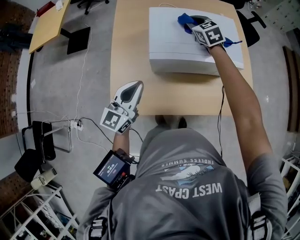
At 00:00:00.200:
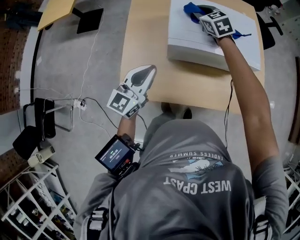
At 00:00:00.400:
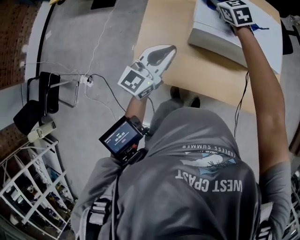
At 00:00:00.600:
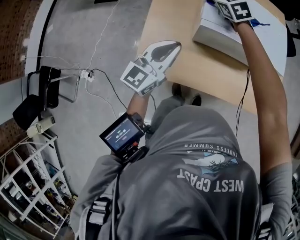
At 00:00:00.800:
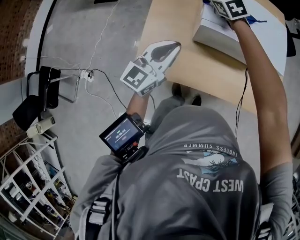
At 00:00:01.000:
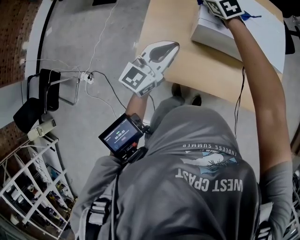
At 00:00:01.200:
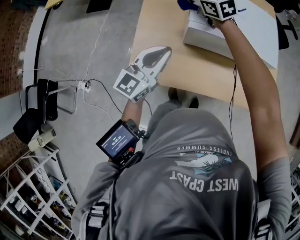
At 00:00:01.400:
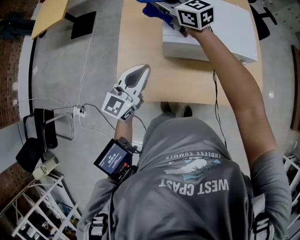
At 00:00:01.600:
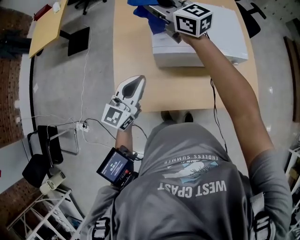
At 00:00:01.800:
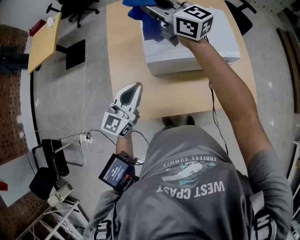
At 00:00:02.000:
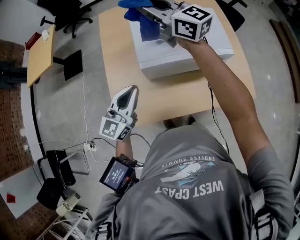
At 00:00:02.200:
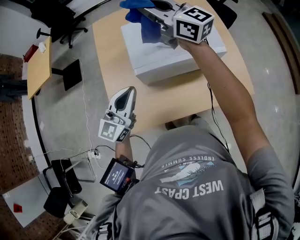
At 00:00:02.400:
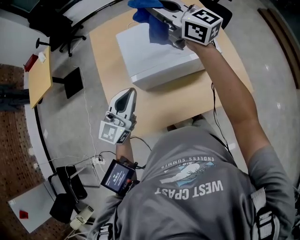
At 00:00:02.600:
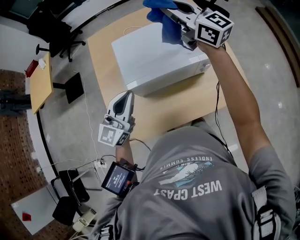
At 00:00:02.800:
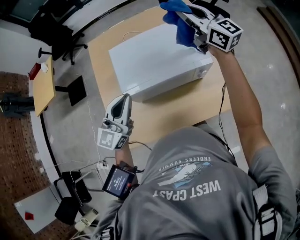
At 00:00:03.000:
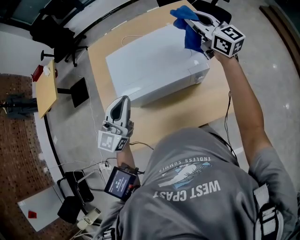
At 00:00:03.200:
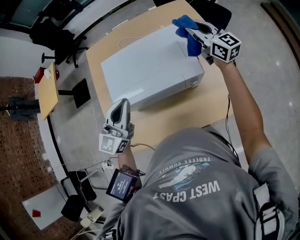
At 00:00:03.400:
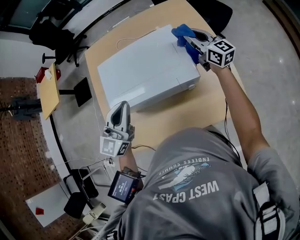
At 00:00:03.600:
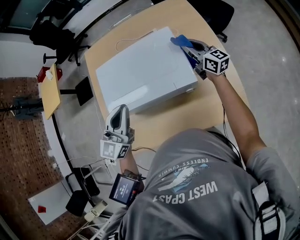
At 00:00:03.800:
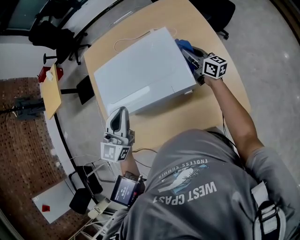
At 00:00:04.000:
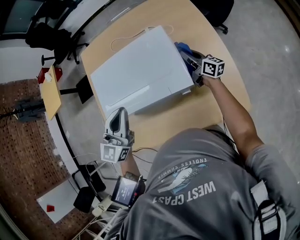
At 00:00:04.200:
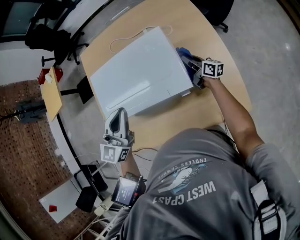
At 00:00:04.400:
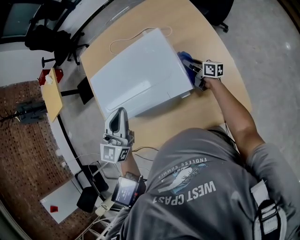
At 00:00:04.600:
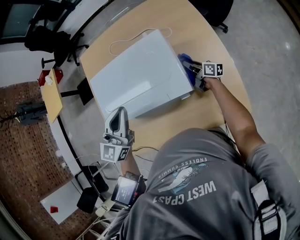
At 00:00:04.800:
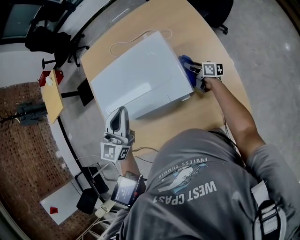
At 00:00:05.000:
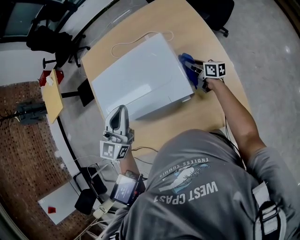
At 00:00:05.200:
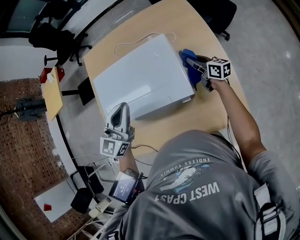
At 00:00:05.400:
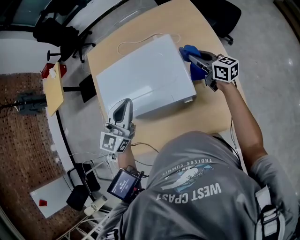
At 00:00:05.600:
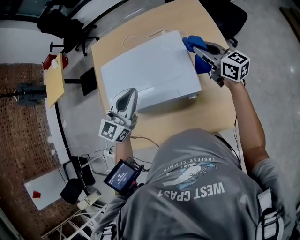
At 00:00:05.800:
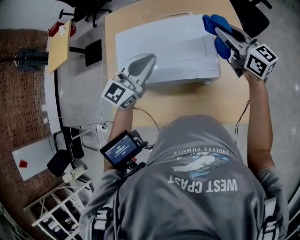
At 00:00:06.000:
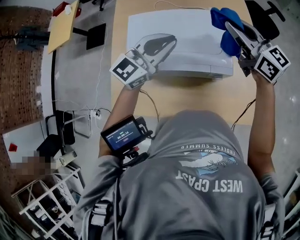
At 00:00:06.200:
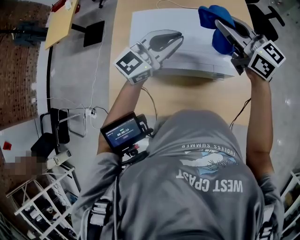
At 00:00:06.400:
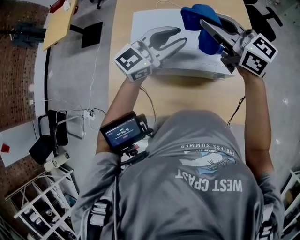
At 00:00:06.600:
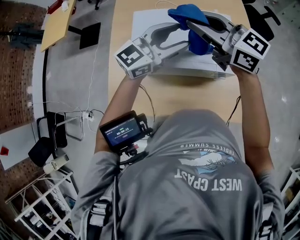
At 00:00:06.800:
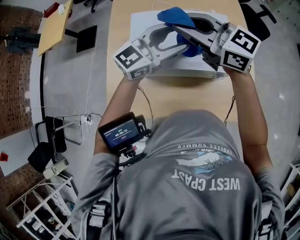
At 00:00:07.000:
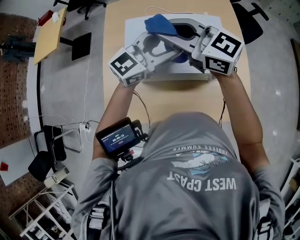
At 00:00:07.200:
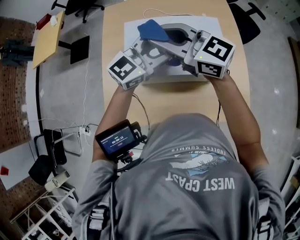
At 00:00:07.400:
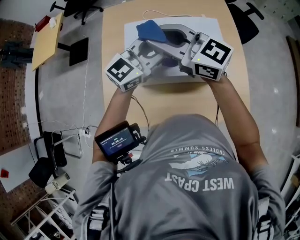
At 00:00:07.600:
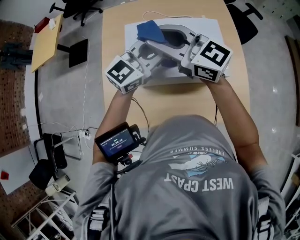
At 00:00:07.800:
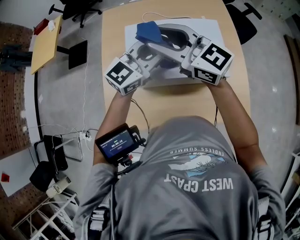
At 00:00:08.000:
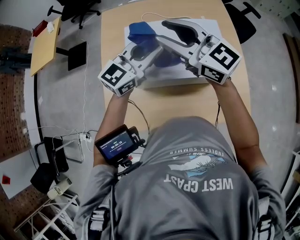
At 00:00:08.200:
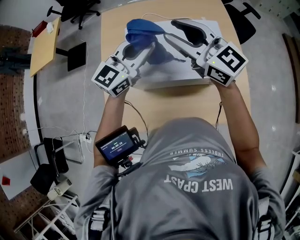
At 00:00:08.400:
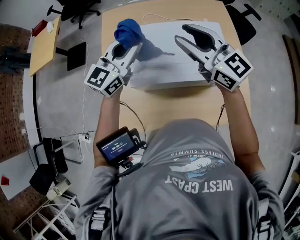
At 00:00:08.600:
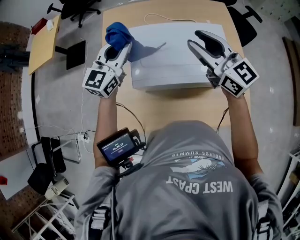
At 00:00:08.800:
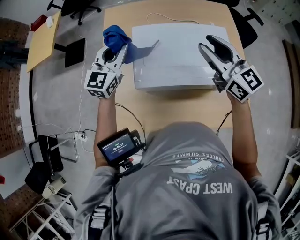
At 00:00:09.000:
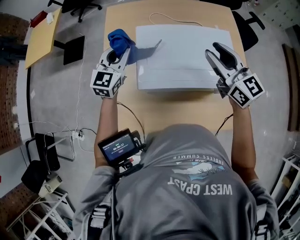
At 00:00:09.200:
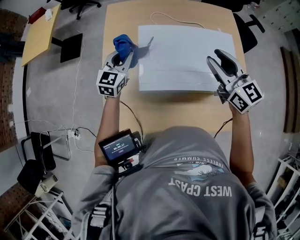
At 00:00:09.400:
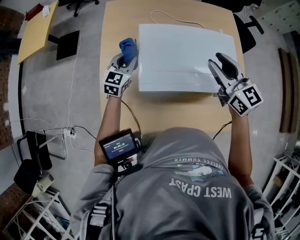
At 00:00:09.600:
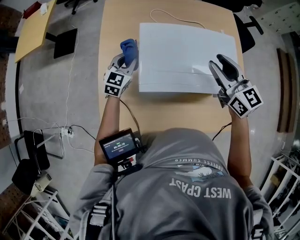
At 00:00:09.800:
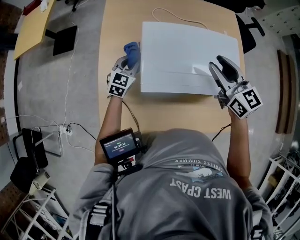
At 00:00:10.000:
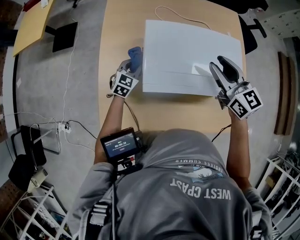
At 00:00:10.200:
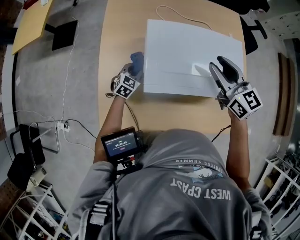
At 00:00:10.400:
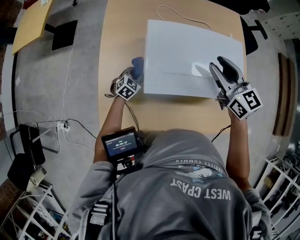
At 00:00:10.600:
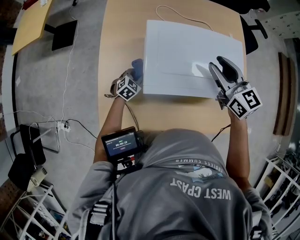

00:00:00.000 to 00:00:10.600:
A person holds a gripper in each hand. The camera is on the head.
00:00:00.000 to 00:00:01.600: The right gripper heads to the left and upward, covering approximately 25 cm, and points its fingers some 40 degrees further upward.
00:00:01.600 to 00:00:03.000: The right gripper shifts about 40 cm to the right, and changes its angle by about 30 degrees. The left gripper is displaced to the right, forward and upward by some 20 cm.
00:00:03.000 to 00:00:04.600: The left gripper travels to the right and forward by some 10 cm; the right gripper travels downward by about 40 cm, and rolls clockwise, seen from behind, by roughly 60 degrees.
00:00:04.600 to 00:00:06.000: The right gripper shifts roughly 35 cm upward, and rolls counterclockwise, seen from behind, by about 50 degrees.
00:00:06.000 to 00:00:07.600: The left gripper shifts by approximately 5 cm, and opens, then closes again; the right gripper moves some 30 cm.
00:00:07.600 to 00:00:09.000: The left gripper shifts some 20 cm to the left and downward, and rotates about 30 degrees, while the right gripper travels to the right and downward by roughly 15 cm, and swivels about 30 degrees.
00:00:09.000 to 00:00:10.600: The right gripper ends up approximately 5 cm from where it was. The left gripper shifts approximately 30 cm downward, and tilts its fingers about 40 degrees downward.

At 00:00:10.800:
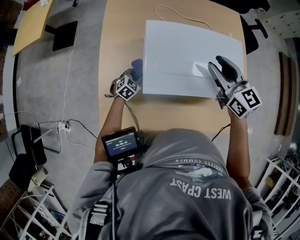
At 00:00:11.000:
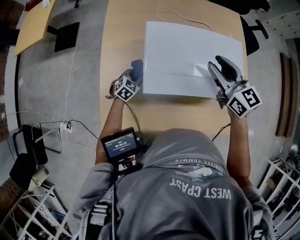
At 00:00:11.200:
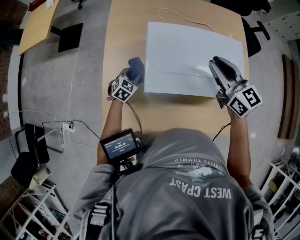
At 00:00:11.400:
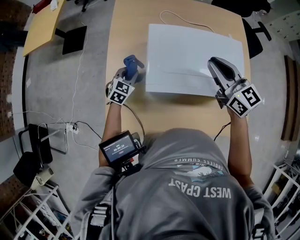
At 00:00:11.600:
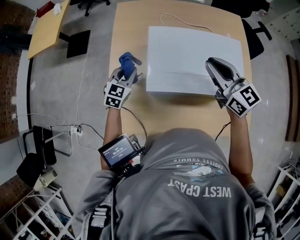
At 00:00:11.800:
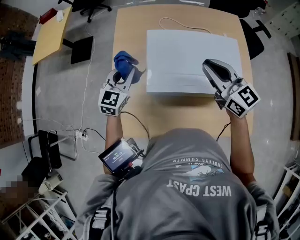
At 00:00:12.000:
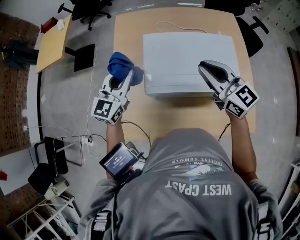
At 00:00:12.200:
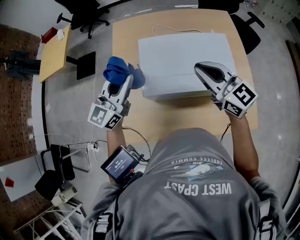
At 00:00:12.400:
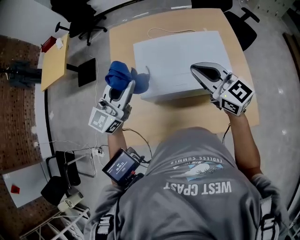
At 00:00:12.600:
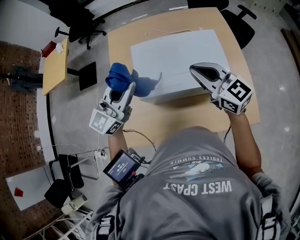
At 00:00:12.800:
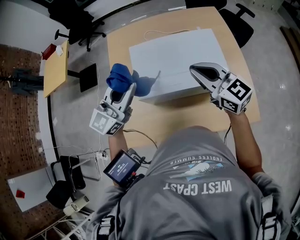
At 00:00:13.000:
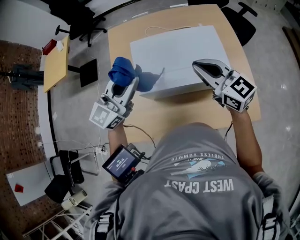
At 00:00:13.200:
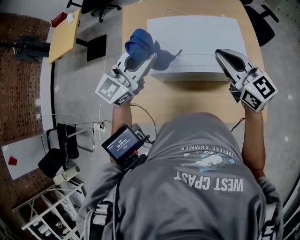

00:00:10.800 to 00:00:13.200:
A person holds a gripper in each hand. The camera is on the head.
00:00:10.800 to 00:00:12.000: The right gripper heads upward, covering about 5 cm, and closes its fingers; the left gripper moves upward, some 35 cm, and angles its fingers upward, by roughly 40 degrees.
00:00:12.000 to 00:00:13.200: The left gripper goes approximately 15 cm to the right and upward, and changes its angle by about 30 degrees; the right gripper goes roughly 10 cm to the right.

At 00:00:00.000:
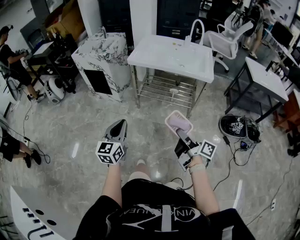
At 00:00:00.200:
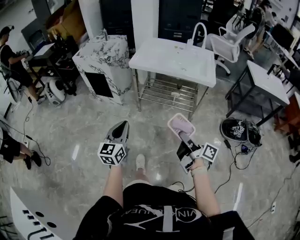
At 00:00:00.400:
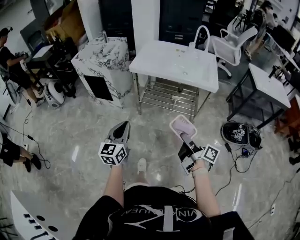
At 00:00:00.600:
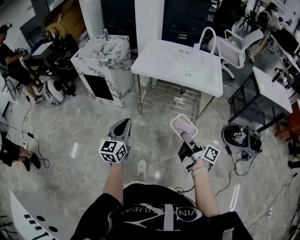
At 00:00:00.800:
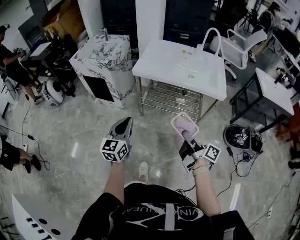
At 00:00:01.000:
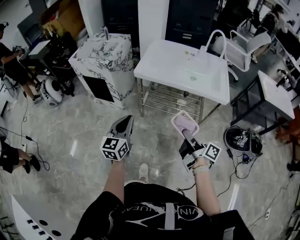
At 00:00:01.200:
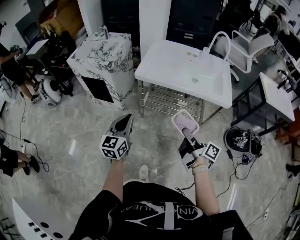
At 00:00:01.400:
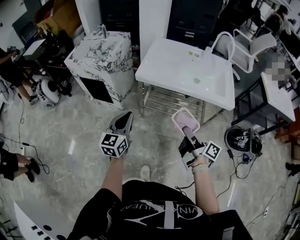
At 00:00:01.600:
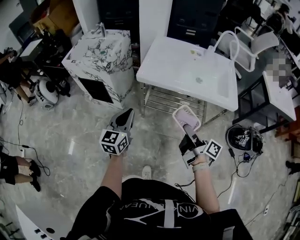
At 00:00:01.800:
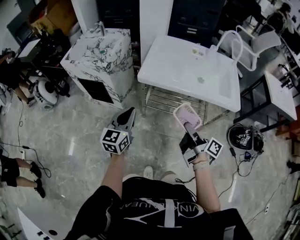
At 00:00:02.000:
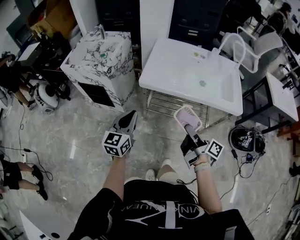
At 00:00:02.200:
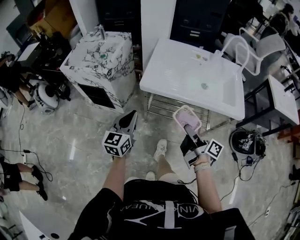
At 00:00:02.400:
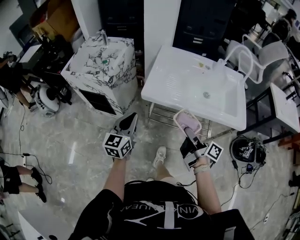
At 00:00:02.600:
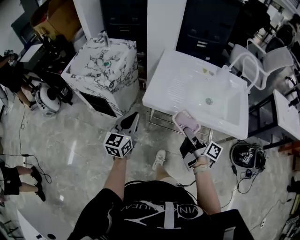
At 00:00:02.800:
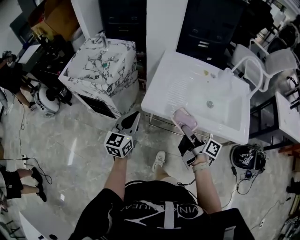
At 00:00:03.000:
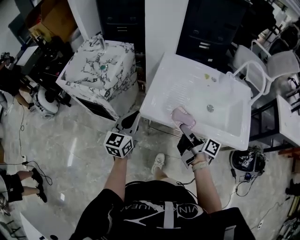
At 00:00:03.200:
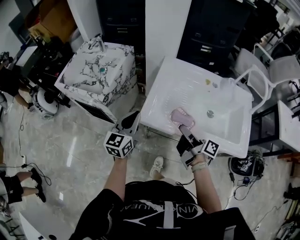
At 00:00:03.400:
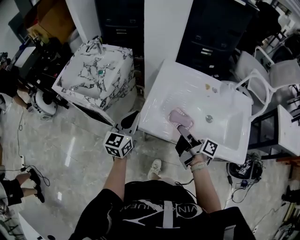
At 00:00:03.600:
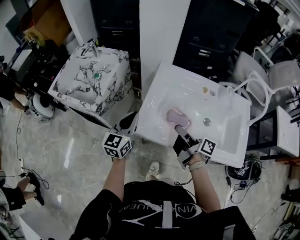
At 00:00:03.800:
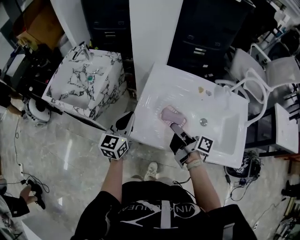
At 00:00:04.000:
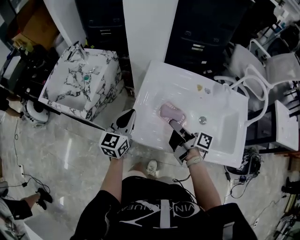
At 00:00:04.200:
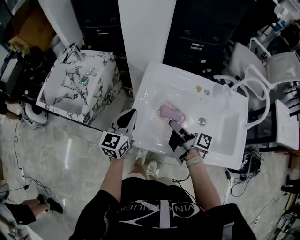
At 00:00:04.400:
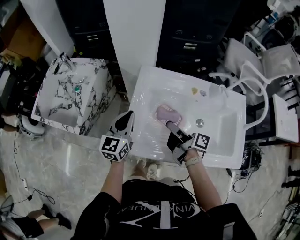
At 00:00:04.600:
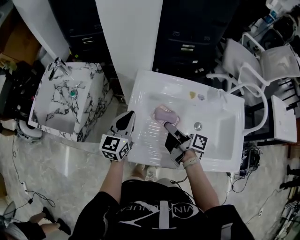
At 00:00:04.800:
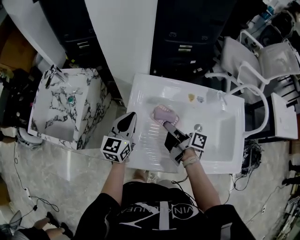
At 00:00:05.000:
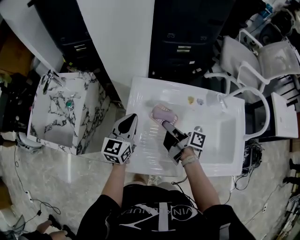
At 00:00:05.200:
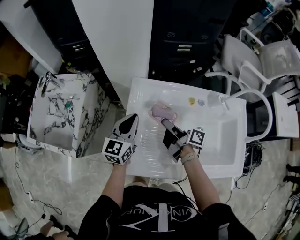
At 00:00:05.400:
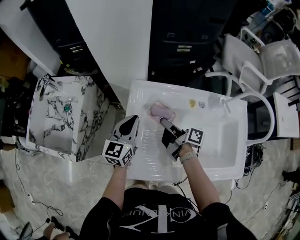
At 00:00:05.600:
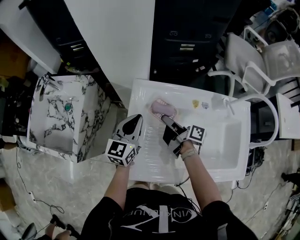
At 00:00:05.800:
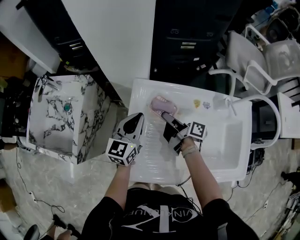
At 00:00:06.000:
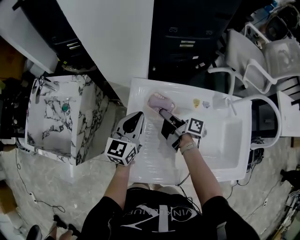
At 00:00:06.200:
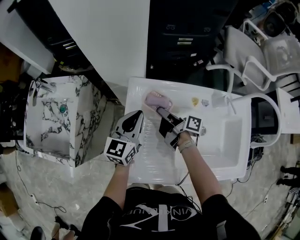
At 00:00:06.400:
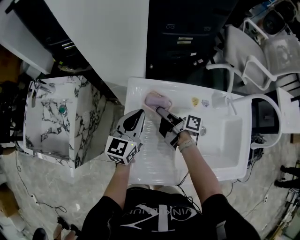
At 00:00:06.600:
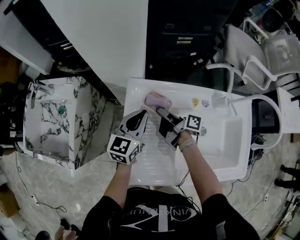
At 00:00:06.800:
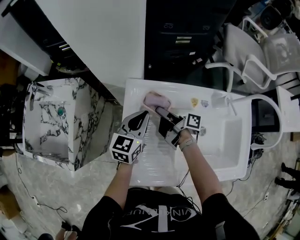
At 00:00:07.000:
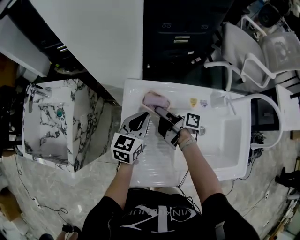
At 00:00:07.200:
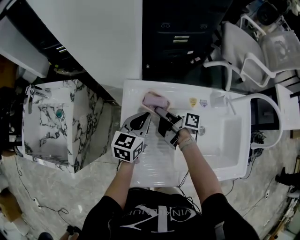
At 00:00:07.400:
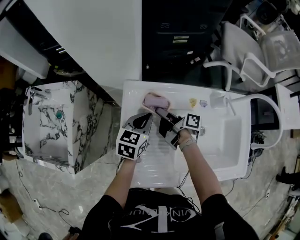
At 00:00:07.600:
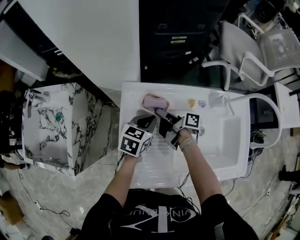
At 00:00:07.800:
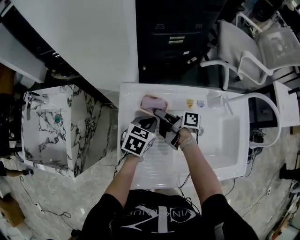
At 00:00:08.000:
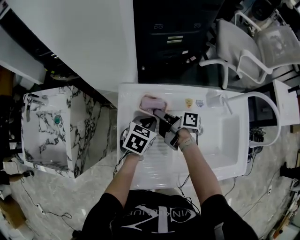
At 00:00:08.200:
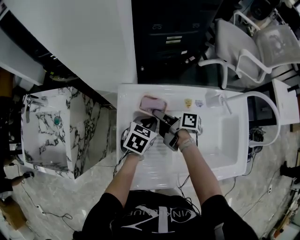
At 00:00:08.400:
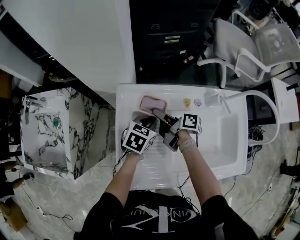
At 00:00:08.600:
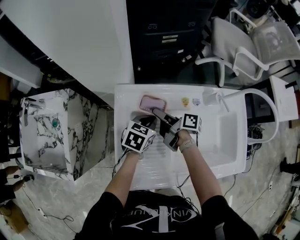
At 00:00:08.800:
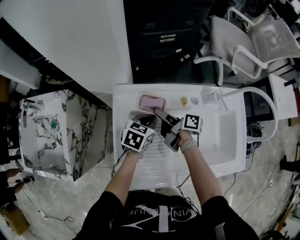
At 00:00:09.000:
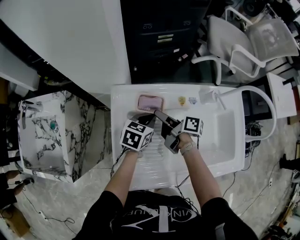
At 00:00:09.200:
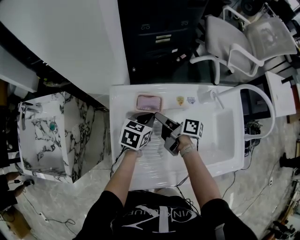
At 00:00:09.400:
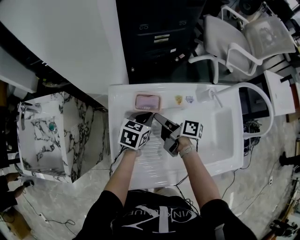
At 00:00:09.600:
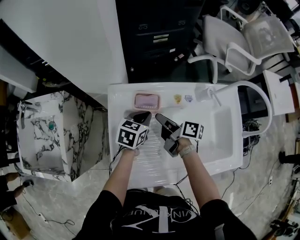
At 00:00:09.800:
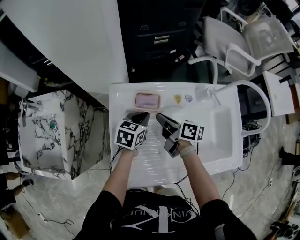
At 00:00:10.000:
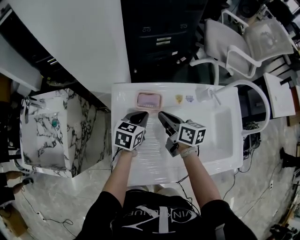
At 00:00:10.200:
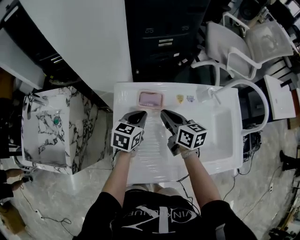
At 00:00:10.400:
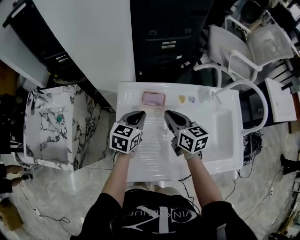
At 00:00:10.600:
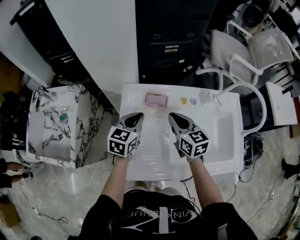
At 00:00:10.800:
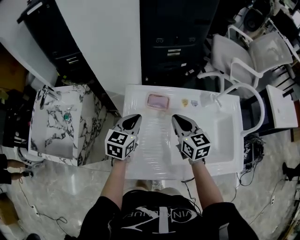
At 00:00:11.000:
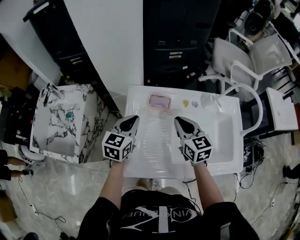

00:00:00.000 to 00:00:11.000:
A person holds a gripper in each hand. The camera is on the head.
00:00:00.000 to 00:00:01.600: The grippers both shift forward by some 30 cm.
00:00:01.600 to 00:00:03.200: The two grippers go about 30 cm forward.
00:00:03.200 to 00:00:04.800: The right gripper travels forward by some 20 cm; the left gripper travels forward and to the right by about 25 cm.
00:00:04.800 to 00:00:06.200: The left gripper travels forward by some 5 cm. The right gripper is displaced forward and downward by approximately 15 cm.
00:00:06.200 to 00:00:07.800: The left gripper goes some 15 cm to the right and downward, and tilts its fingers approximately 30 degrees downward.
00:00:07.800 to 00:00:09.400: The right gripper heads to the right, covering approximately 5 cm, and opens its fingers.
00:00:09.400 to 00:00:11.000: The right gripper is displaced upward and backward by about 15 cm, rotates around the line of its fingers by approximately 70 degrees, counterclockwise from behind, and closes up, while the left gripper shifts roughly 20 cm upward, to the left and backward, and rotates roughly 20 degrees.
